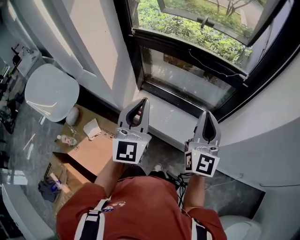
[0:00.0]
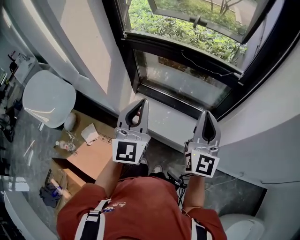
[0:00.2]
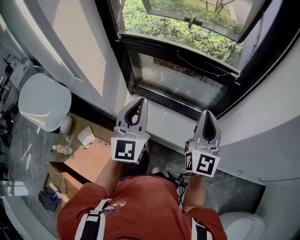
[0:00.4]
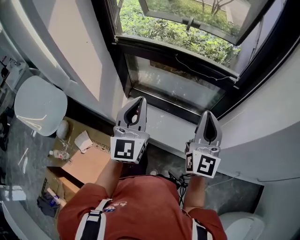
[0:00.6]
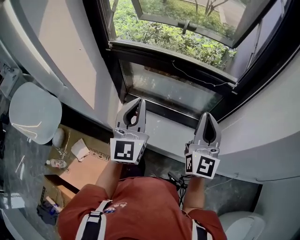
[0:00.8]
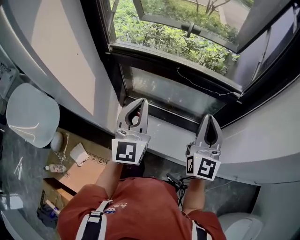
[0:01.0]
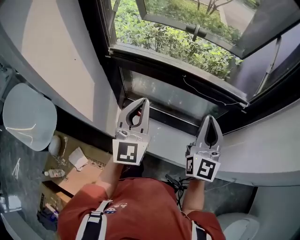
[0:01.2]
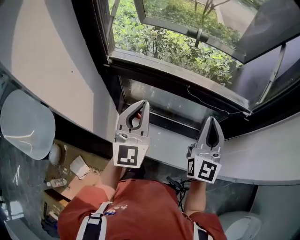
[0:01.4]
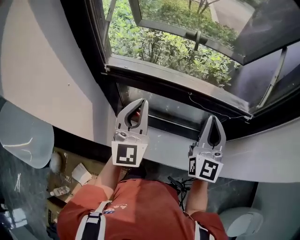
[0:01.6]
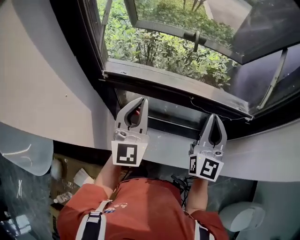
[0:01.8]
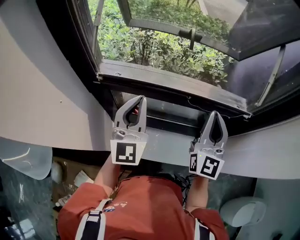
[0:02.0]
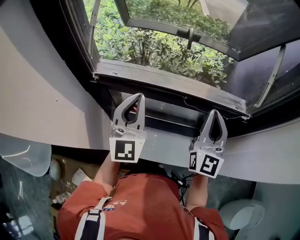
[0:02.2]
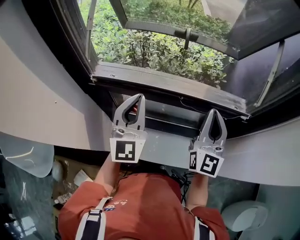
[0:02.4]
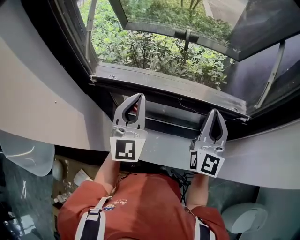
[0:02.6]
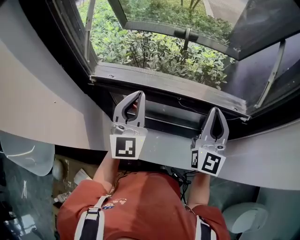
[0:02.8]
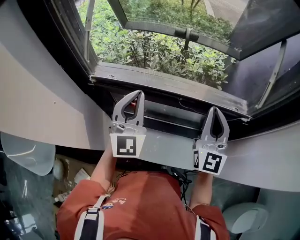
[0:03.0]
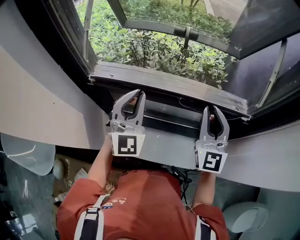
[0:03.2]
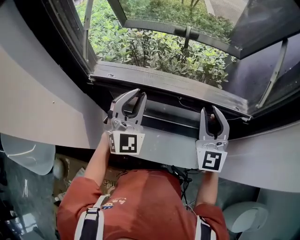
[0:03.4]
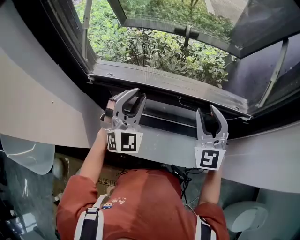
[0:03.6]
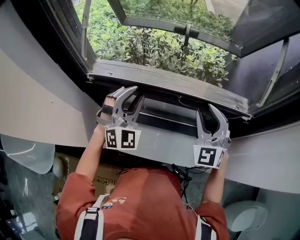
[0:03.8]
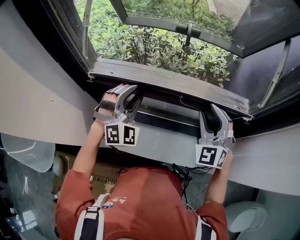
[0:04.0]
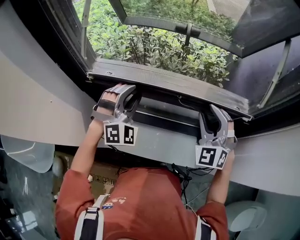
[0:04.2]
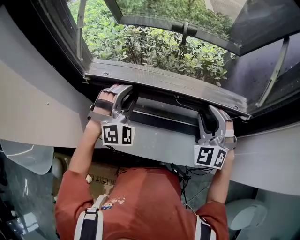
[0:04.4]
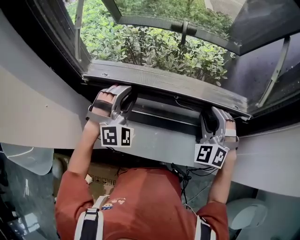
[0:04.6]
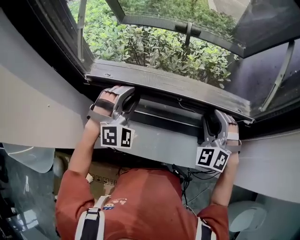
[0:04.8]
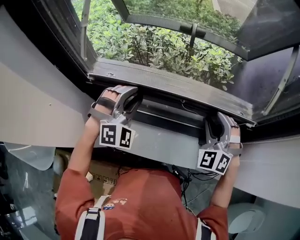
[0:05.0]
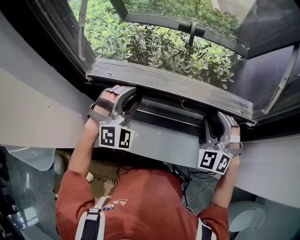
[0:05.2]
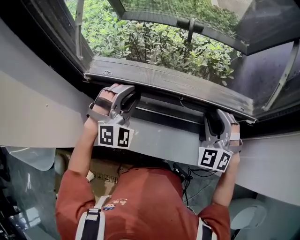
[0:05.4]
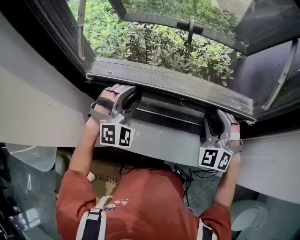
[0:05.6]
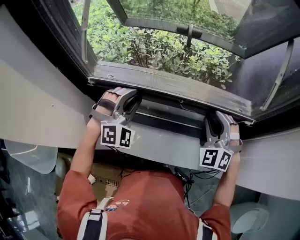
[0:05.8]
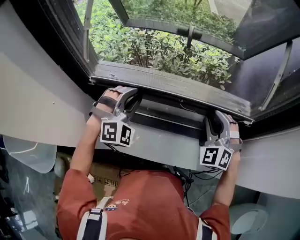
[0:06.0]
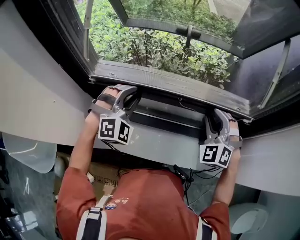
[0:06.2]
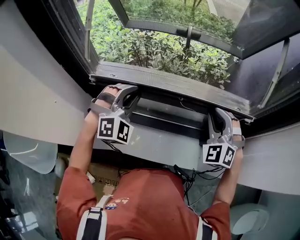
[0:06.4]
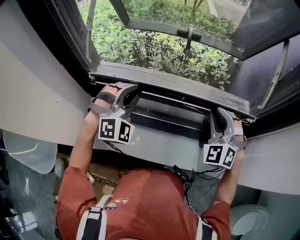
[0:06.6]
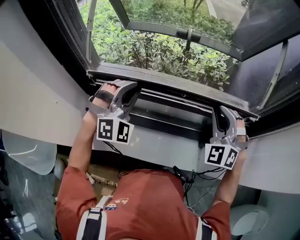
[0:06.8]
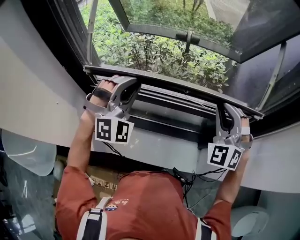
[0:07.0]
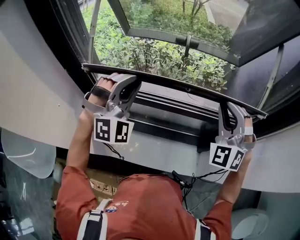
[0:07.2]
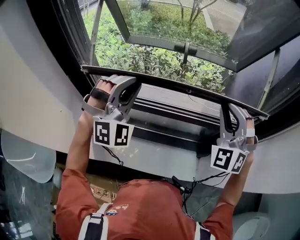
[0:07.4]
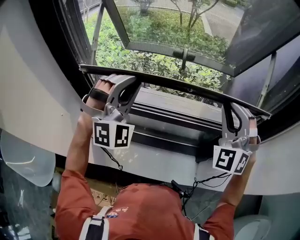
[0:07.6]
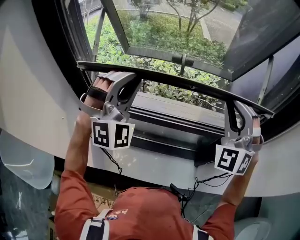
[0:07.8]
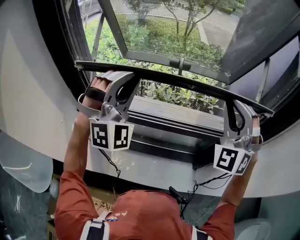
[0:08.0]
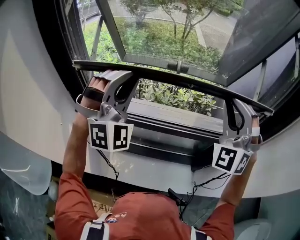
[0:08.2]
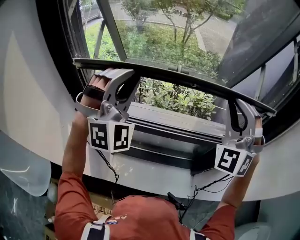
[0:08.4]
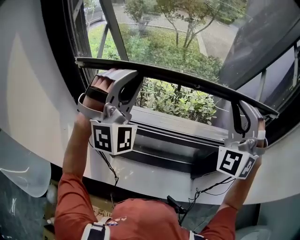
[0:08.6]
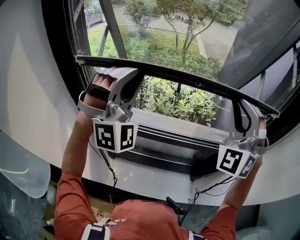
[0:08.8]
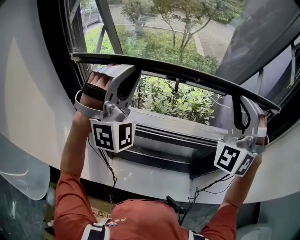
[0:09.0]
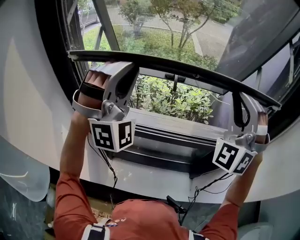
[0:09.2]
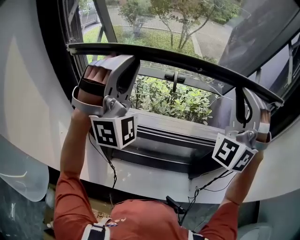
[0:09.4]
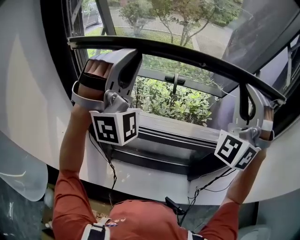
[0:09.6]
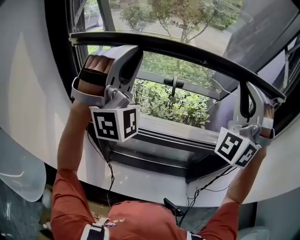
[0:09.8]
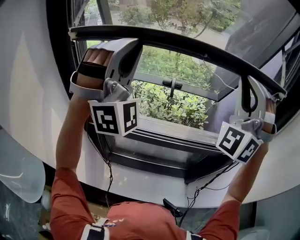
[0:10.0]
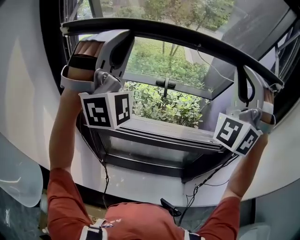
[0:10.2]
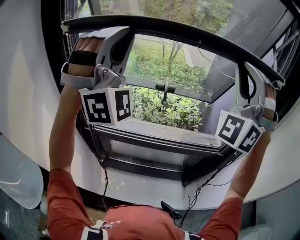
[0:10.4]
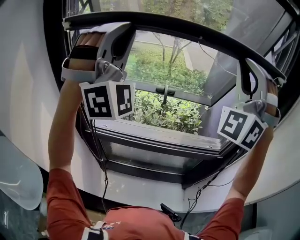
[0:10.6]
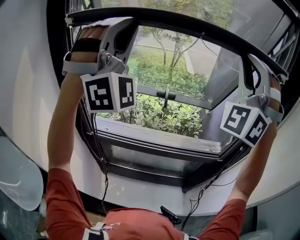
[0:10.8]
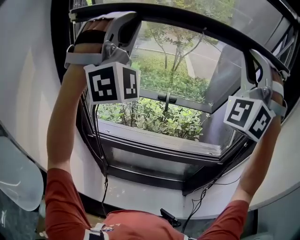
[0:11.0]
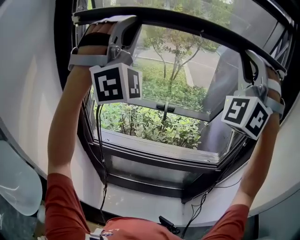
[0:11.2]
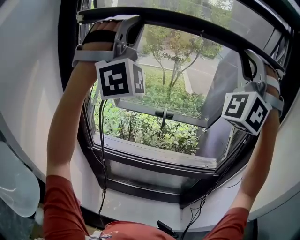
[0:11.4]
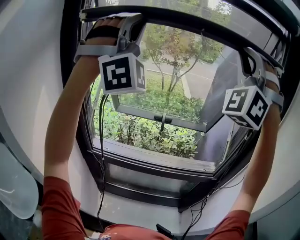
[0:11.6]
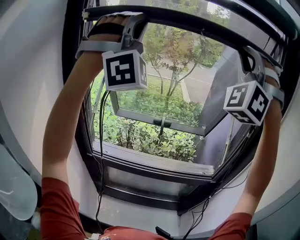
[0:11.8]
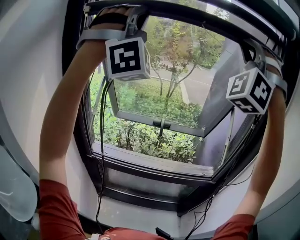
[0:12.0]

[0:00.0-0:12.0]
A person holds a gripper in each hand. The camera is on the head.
0.0 to 1.6 s: Both grippers travel together forward, approximately 25 cm.
1.6 to 3.0 s: The two grippers go about 5 cm forward.
3.0 to 4.4 s: Both grippers move downward, approximately 10 cm. The right gripper twists roughly 40 degrees counterclockwise, seen from behind, and opens up, while the left gripper rolls clockwise, seen from behind, by approximately 50 degrees, and opens.
4.4 to 6.0 s: The grippers make only small movements.
6.0 to 7.6 s: The two grippers go about 15 cm upward. The left gripper swivels about 20 degrees.
7.6 to 9.0 s: The two grippers go about 15 cm upward.
9.0 to 10.4 s: Both grippers travel together upward, roughly 15 cm.
10.4 to 12.0 s: Both grippers travel together upward, some 20 cm.

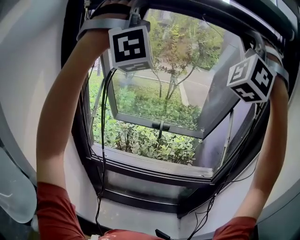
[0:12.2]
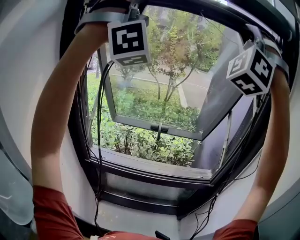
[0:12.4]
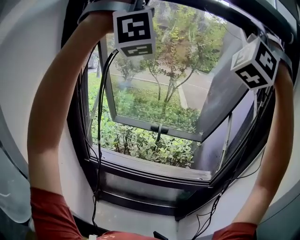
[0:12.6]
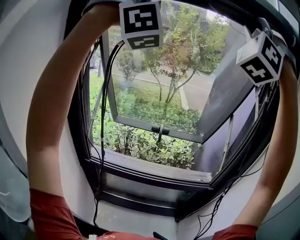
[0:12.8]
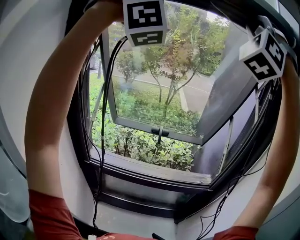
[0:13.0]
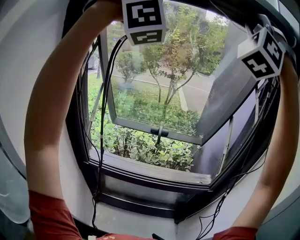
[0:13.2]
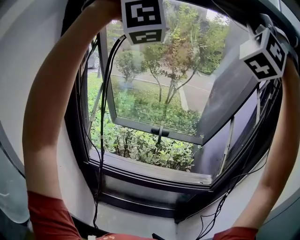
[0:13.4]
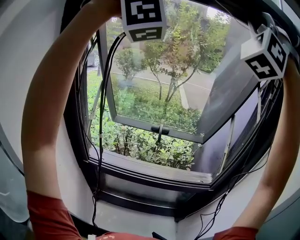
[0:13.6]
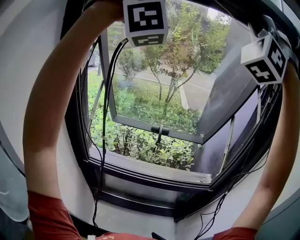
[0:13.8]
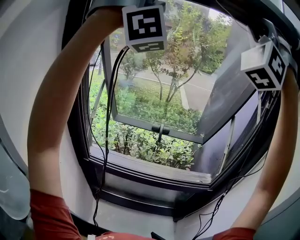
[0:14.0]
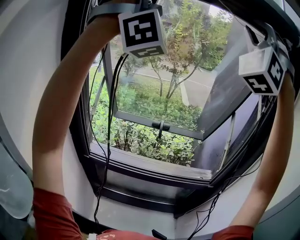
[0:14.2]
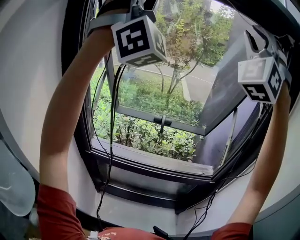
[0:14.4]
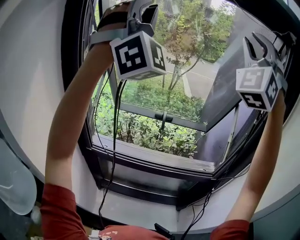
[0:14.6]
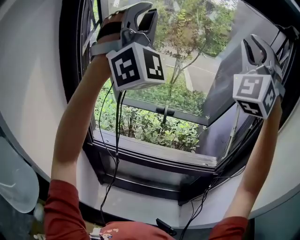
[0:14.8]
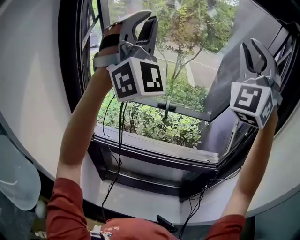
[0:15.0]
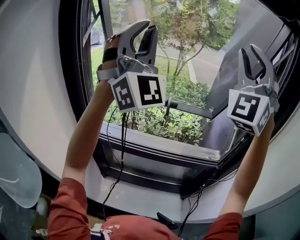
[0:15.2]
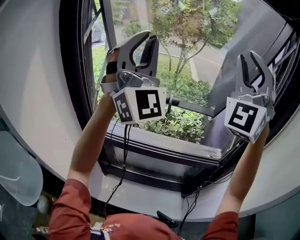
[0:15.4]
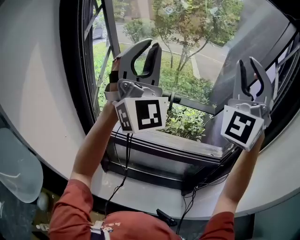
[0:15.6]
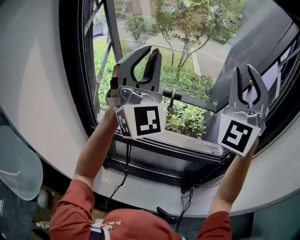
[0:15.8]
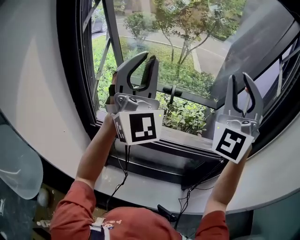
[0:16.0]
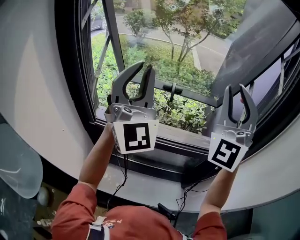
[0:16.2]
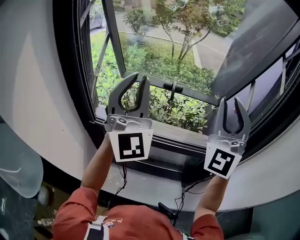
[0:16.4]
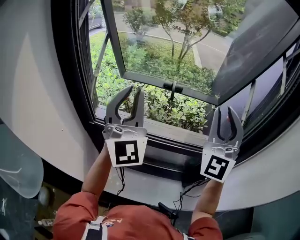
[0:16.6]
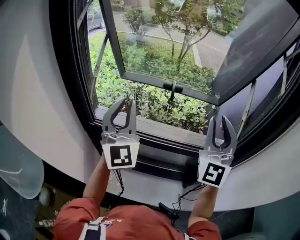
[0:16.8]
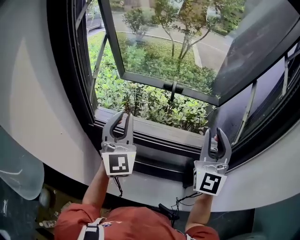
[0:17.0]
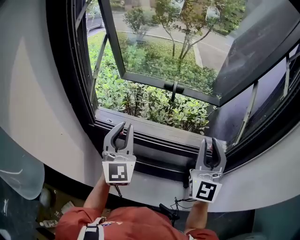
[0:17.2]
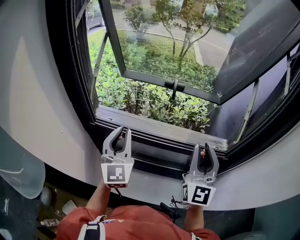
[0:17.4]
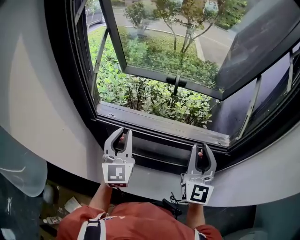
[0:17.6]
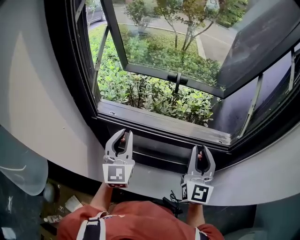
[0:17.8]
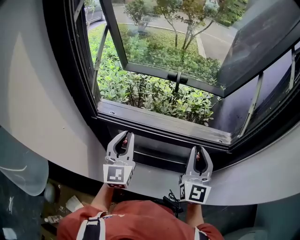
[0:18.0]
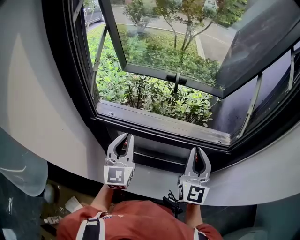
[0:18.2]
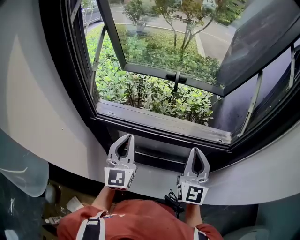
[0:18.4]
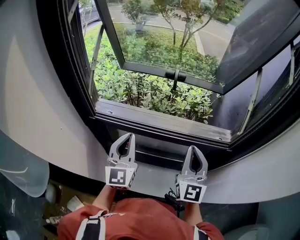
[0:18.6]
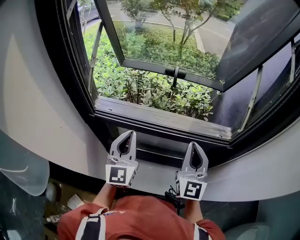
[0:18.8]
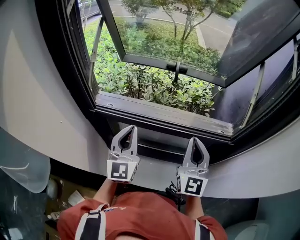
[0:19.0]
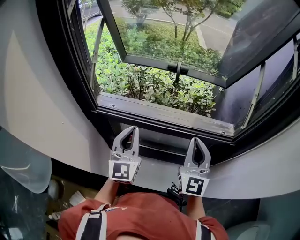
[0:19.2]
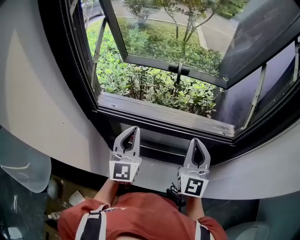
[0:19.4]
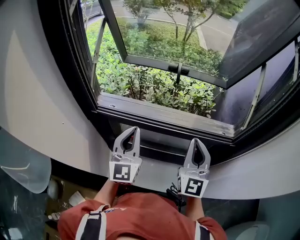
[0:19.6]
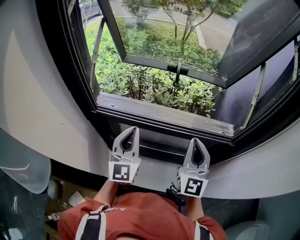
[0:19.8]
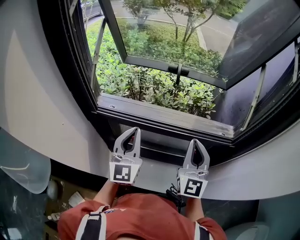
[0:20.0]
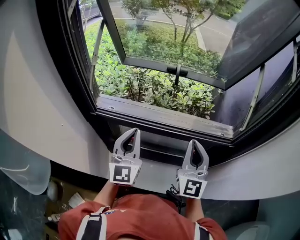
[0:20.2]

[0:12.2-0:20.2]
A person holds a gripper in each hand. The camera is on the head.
12.2 to 13.8 s: The two grippers go approximately 5 cm upward.
13.8 to 15.4 s: Both grippers move downward, about 25 cm. The left gripper twists approximately 50 degrees counterclockwise, seen from behind. Meanwhile the right gripper rotates approximately 30 degrees.
15.4 to 17.0 s: The grippers both shift downward by about 30 cm. The right gripper rotates around the line of its fingers by some 40 degrees, clockwise from behind; the left gripper changes its angle by some 40 degrees.
17.0 to 18.6 s: The grippers both shift downward by approximately 10 cm. The right gripper closes its fingers.
18.6 to 20.2 s: The grippers move only a little.

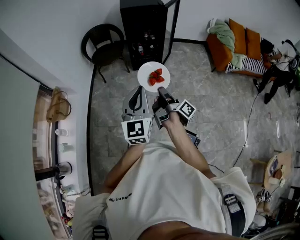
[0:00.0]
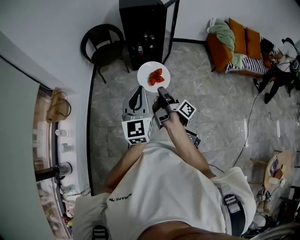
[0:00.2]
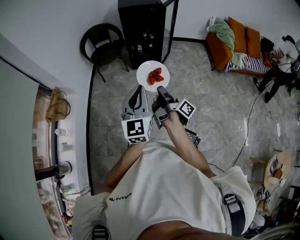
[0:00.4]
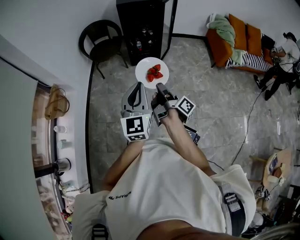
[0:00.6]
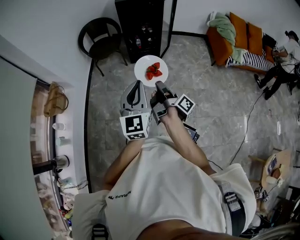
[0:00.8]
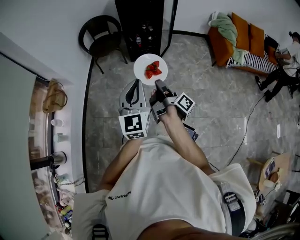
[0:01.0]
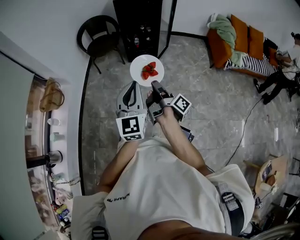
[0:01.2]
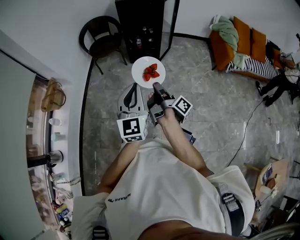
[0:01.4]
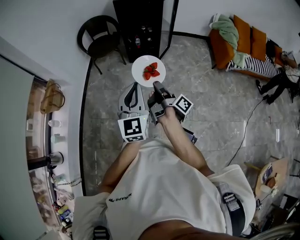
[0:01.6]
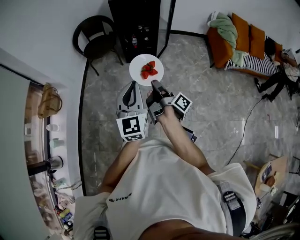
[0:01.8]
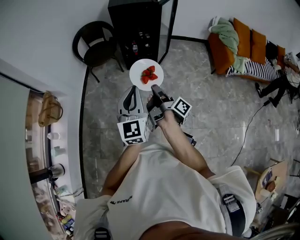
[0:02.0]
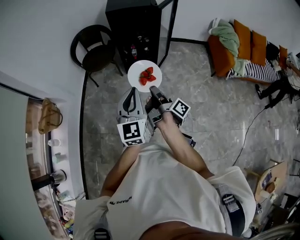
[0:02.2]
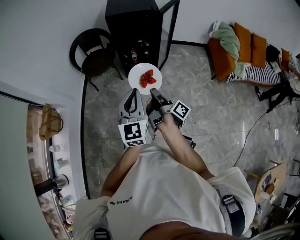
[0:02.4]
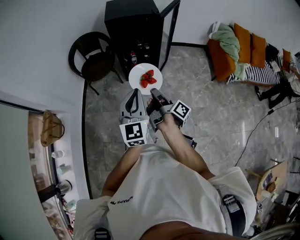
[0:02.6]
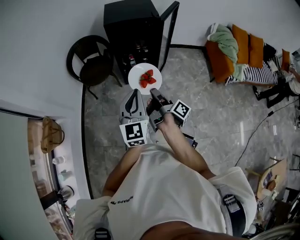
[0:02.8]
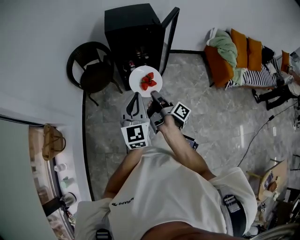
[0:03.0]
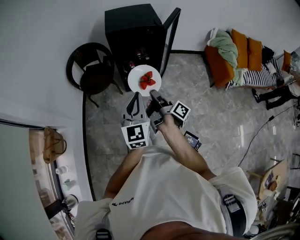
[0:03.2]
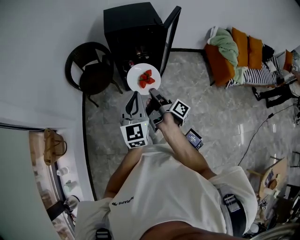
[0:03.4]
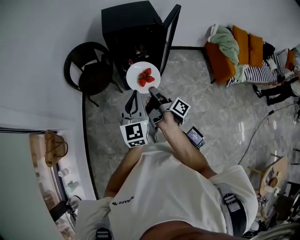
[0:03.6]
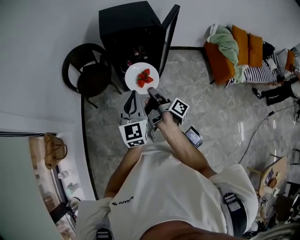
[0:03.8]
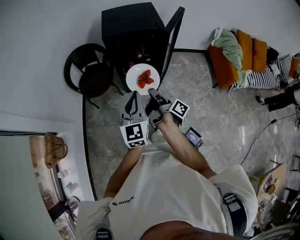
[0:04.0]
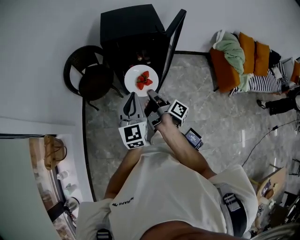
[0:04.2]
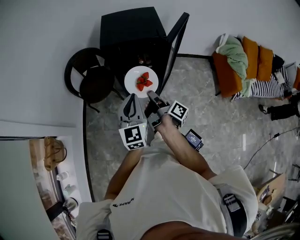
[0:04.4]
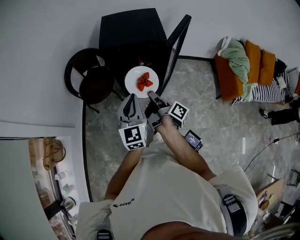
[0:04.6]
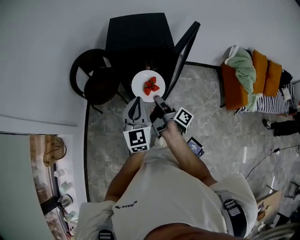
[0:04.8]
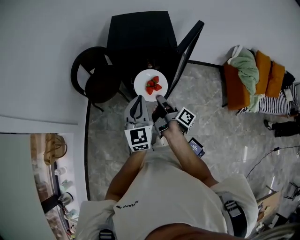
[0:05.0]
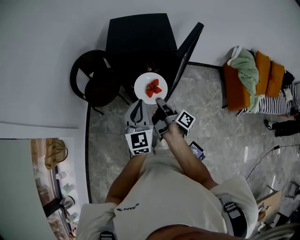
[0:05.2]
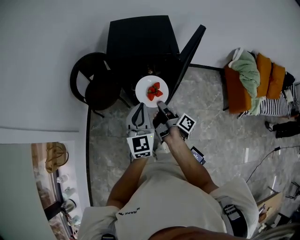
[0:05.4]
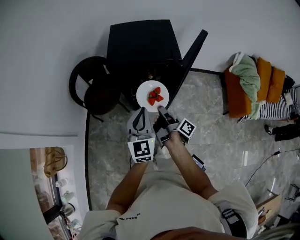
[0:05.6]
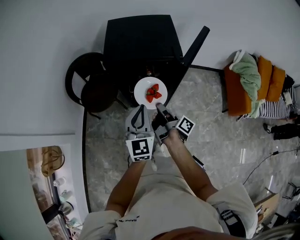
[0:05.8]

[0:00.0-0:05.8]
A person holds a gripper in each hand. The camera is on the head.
0.0 to 1.4 s: The left gripper shifts by roughly 10 cm.
1.4 to 2.8 s: The left gripper changes place by approximately 30 cm.
2.8 to 4.4 s: The left gripper moves approximately 20 cm.
4.4 to 5.8 s: The left gripper ends up some 15 cm from where it was.
